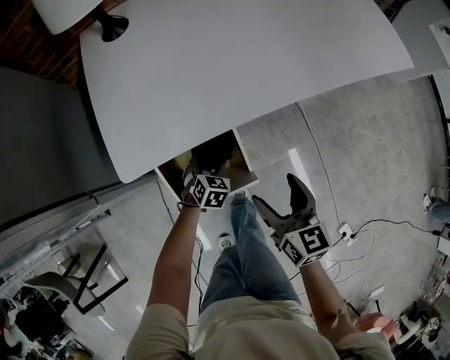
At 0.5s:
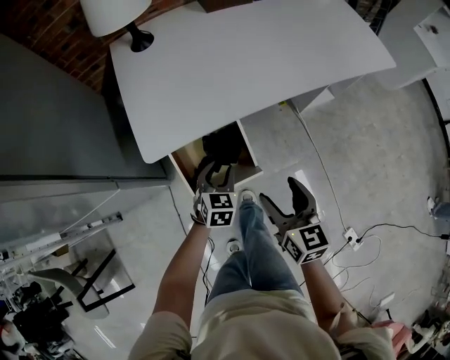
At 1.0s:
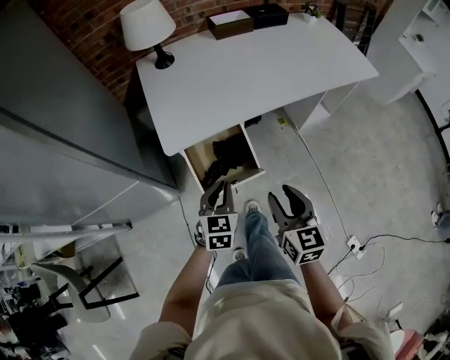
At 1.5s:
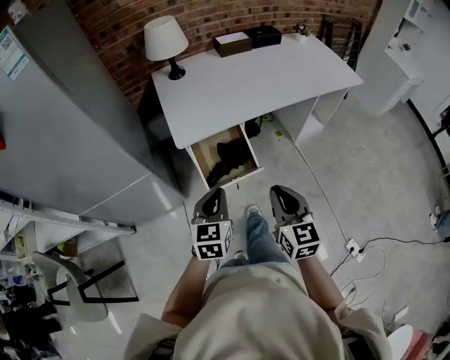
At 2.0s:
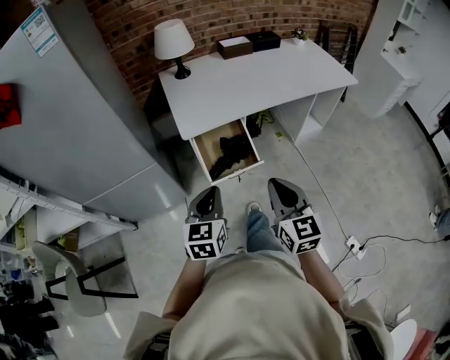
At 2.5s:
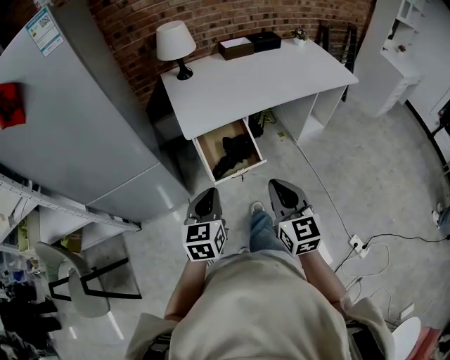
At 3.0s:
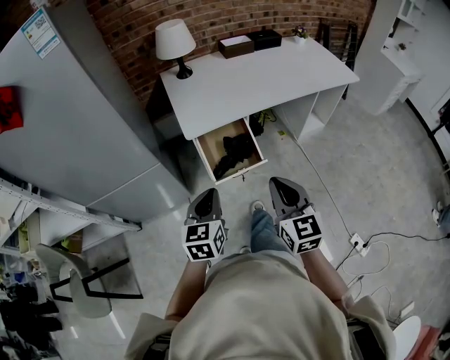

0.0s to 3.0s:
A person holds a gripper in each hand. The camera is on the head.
0.0s to 1.5s: The right gripper is displaced backward and upward by roughly 30 cm, changes its angle by some 20 degrees, and closes its fingers; the left gripper heads upward and backward, covering approximately 50 cm, tilts its fingers approximately 30 degrees upward, and closes up.
1.5s to 3.0s: The left gripper is displaced backward and to the left by about 10 cm. Meanwhile the right gripper moves backward, some 5 cm.

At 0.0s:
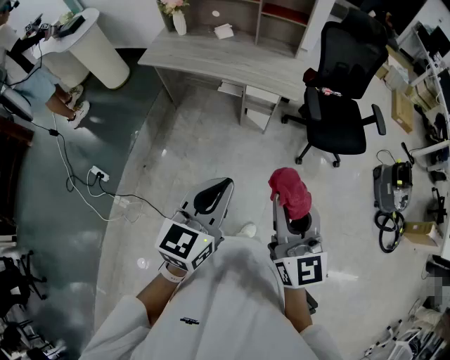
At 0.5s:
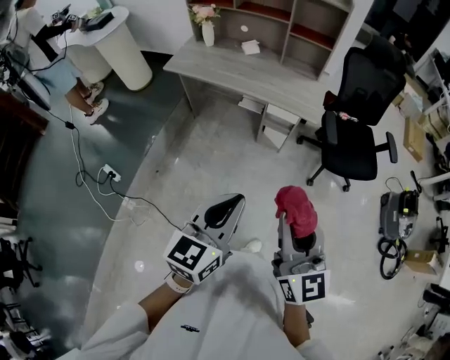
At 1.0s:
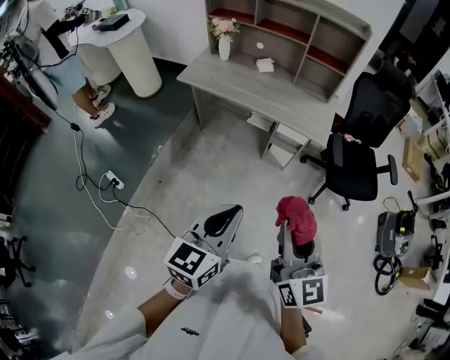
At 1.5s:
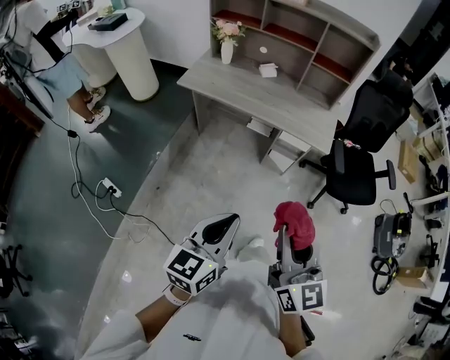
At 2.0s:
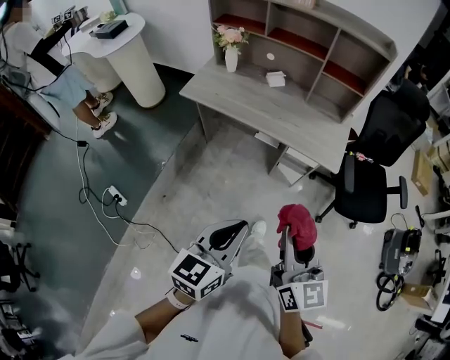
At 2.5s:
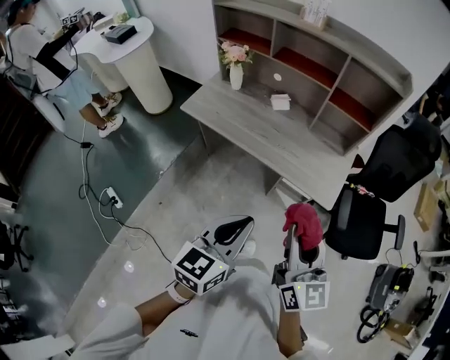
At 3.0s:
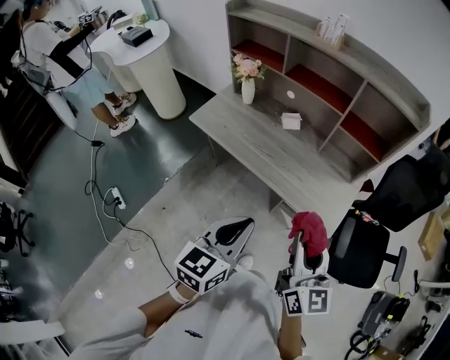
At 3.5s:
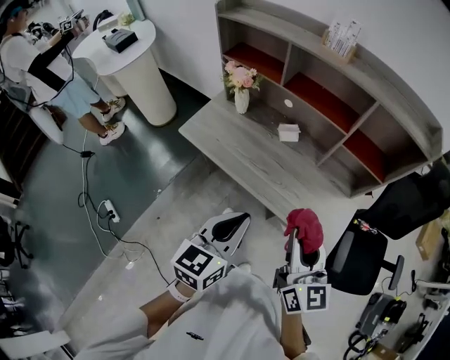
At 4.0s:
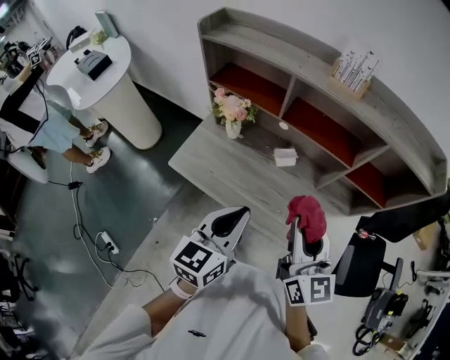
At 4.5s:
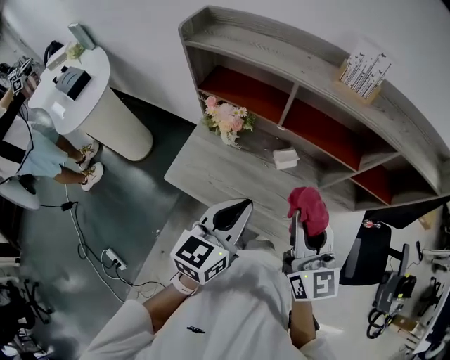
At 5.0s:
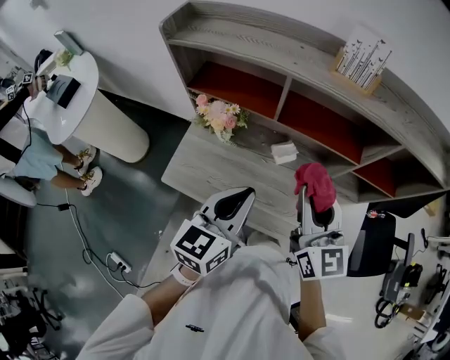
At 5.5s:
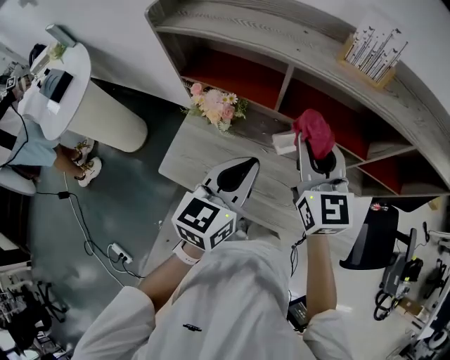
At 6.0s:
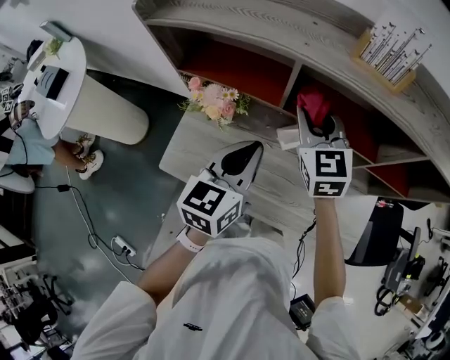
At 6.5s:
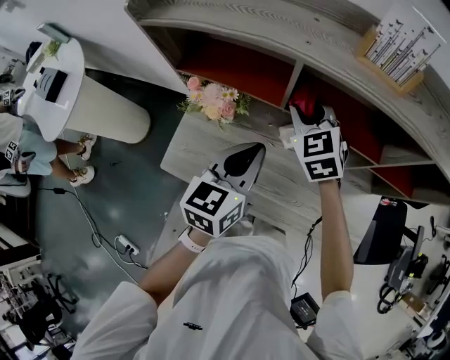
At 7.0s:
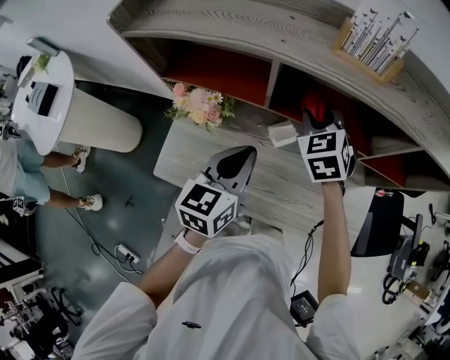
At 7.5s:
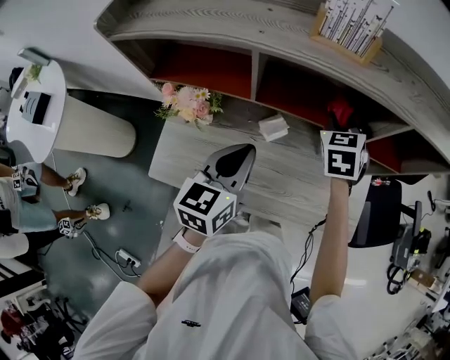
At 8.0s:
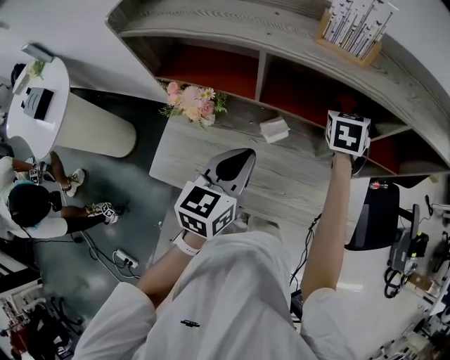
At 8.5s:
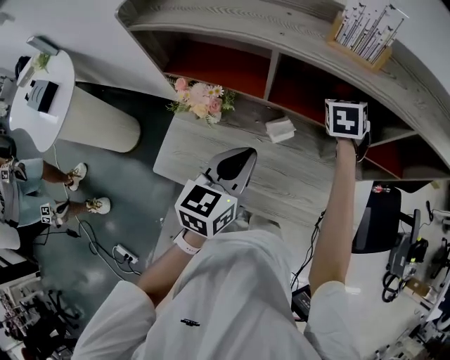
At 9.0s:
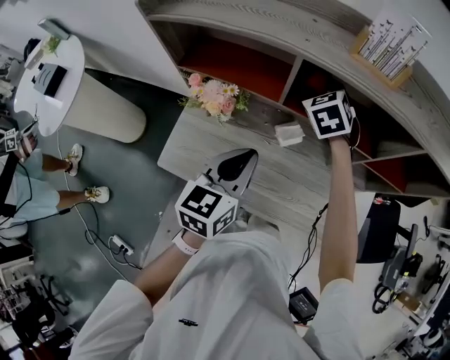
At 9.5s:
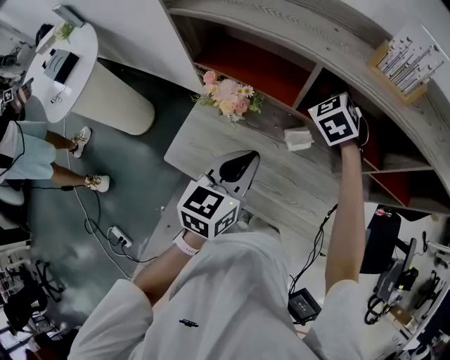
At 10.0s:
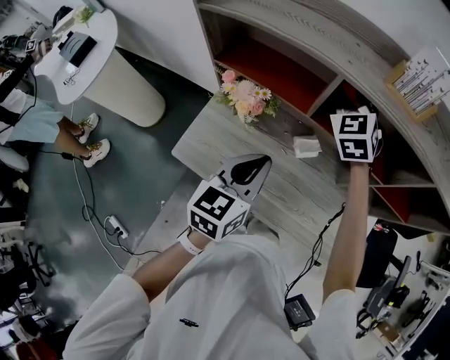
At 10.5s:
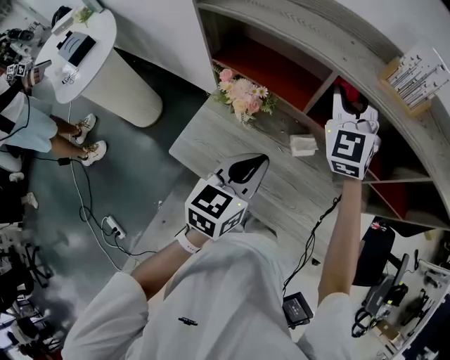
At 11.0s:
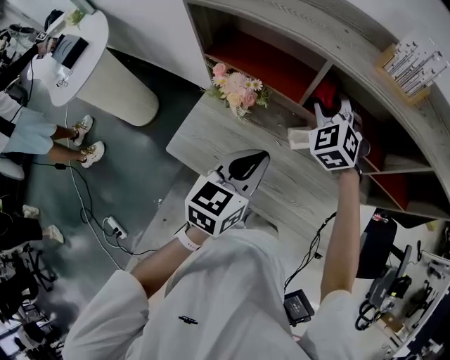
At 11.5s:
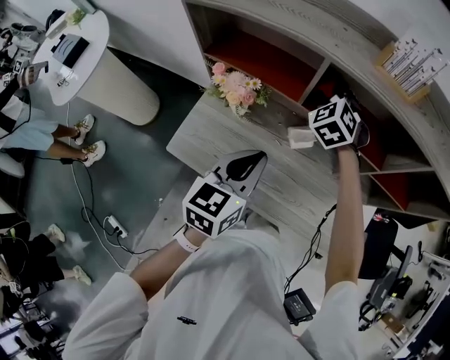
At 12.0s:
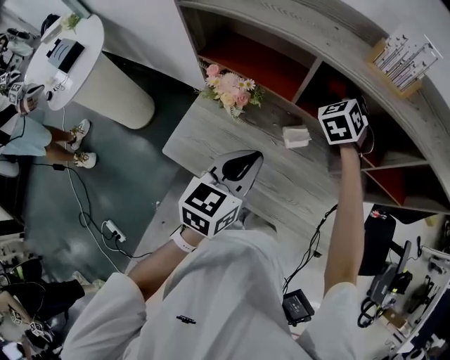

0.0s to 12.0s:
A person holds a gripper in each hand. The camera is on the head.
0.0s to 2.0s: The right gripper shifts approximately 20 cm forward and to the left; the left gripper shifts roughly 20 cm to the left and forward.
2.0s to 4.0s: The pair of grippers is taken forward, approximately 50 cm.
4.0s to 6.0s: The grippers both shift forward by about 25 cm. The right gripper changes its angle by roughly 30 degrees.
6.0s to 8.0s: The right gripper heads to the right, covering some 20 cm, and rotates some 40 degrees.
8.0s to 10.0s: The left gripper is displaced to the left by approximately 5 cm, while the right gripper moves to the left, about 20 cm, and swivels about 50 degrees.
10.0s to 12.0s: The right gripper travels downward and to the right by roughly 10 cm, and rotates roughly 20 degrees.

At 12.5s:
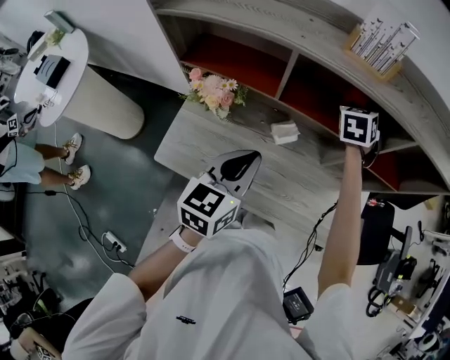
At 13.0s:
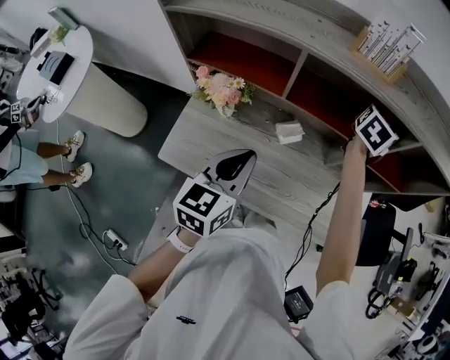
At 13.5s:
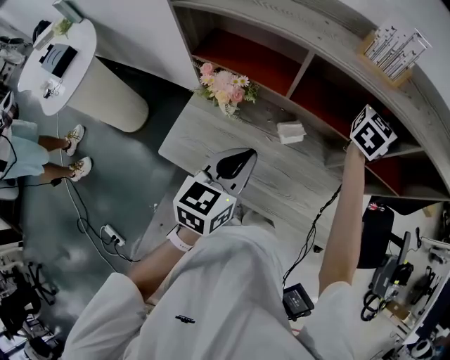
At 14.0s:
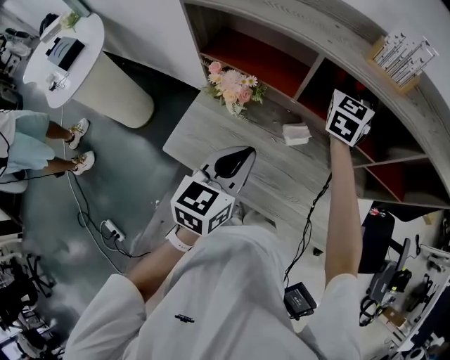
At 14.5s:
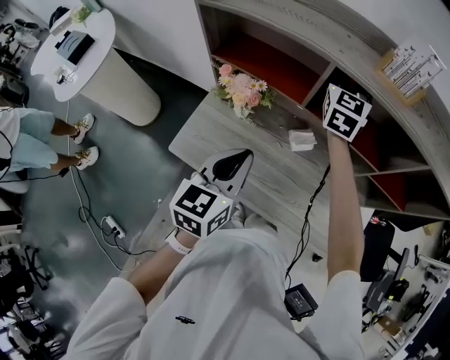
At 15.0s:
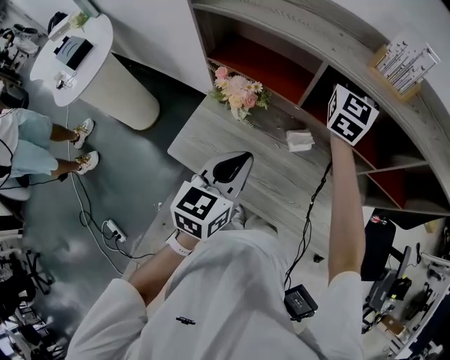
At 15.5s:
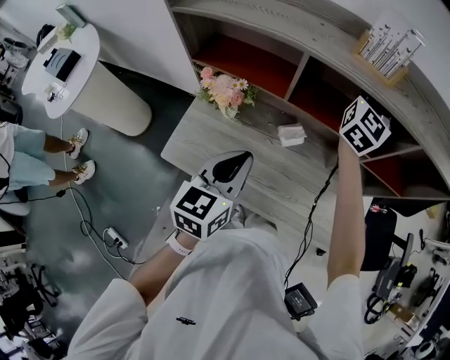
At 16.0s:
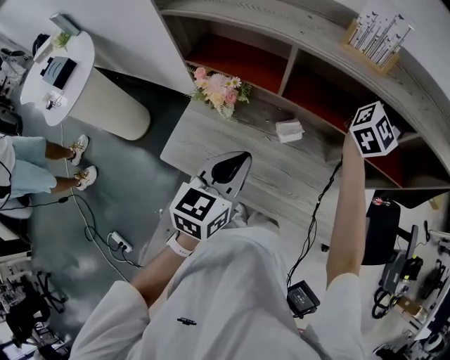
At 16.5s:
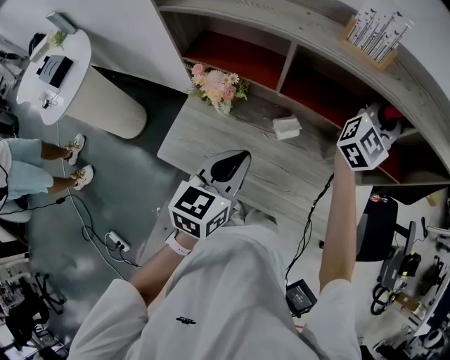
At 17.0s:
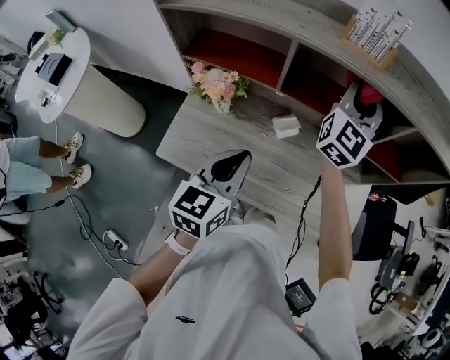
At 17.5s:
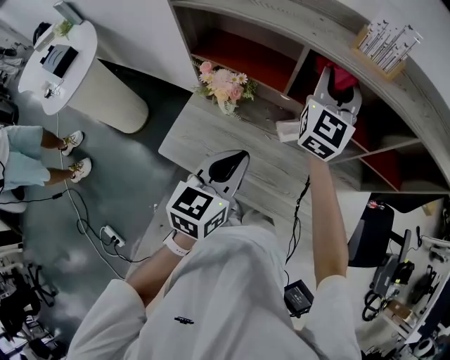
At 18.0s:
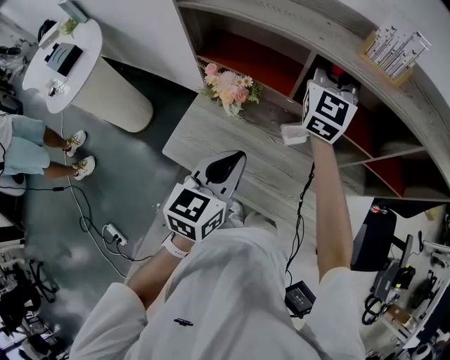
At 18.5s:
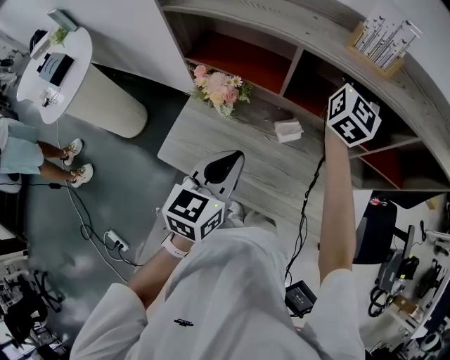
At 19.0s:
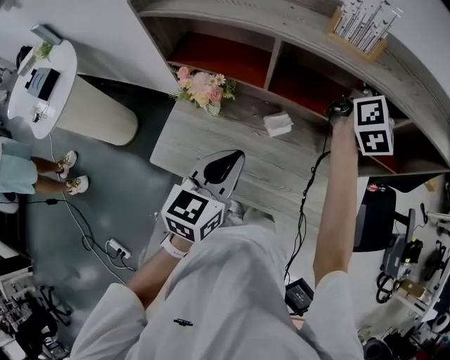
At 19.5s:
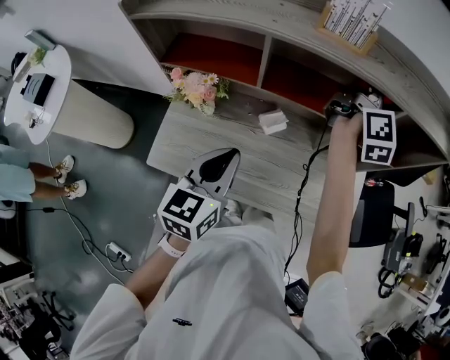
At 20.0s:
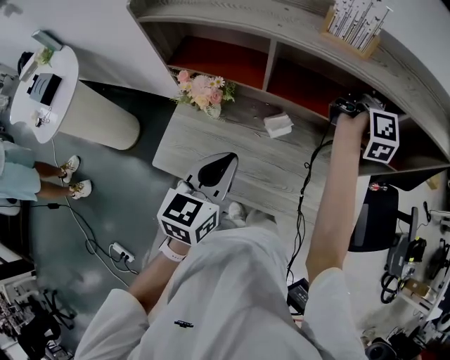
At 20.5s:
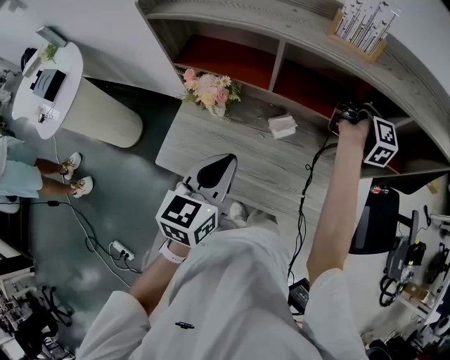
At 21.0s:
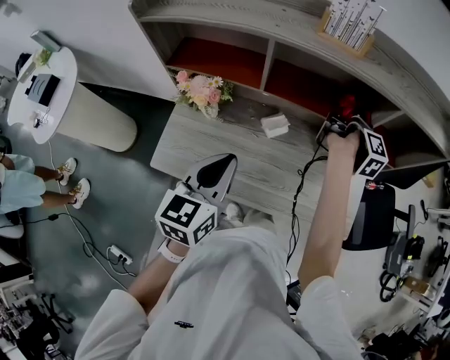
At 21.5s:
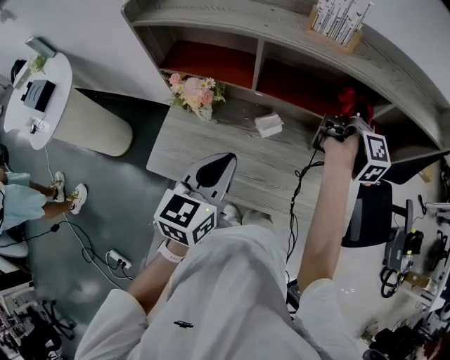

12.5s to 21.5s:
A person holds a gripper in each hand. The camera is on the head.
12.5s to 14.5s: The left gripper goes roughly 5 cm to the left, while the right gripper goes approximately 20 cm to the left and upward, and tips its fingers upward by roughly 30 degrees.
14.5s to 17.0s: The left gripper goes roughly 5 cm to the right. Meanwhile the right gripper travels to the right and backward by some 15 cm, and swivels roughly 30 degrees.
17.0s to 19.5s: The right gripper travels to the right by roughly 10 cm, and rolls clockwise, seen from behind, by roughly 50 degrees.
19.5s to 21.5s: The right gripper moves downward and backward, some 10 cm, and rotates approximately 40 degrees.

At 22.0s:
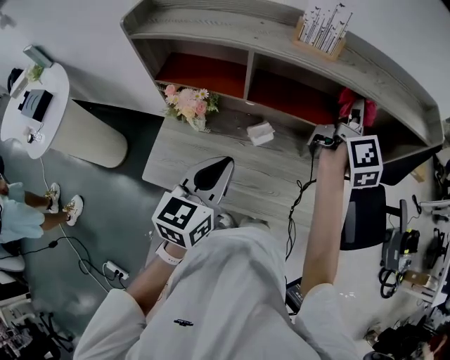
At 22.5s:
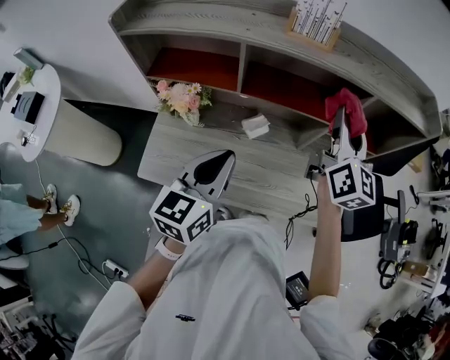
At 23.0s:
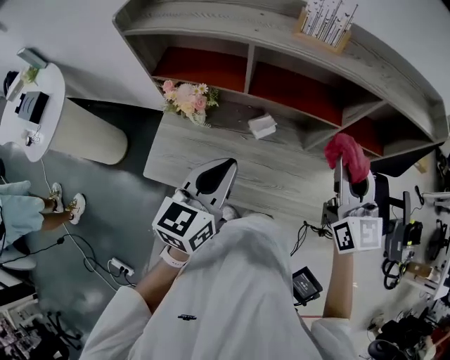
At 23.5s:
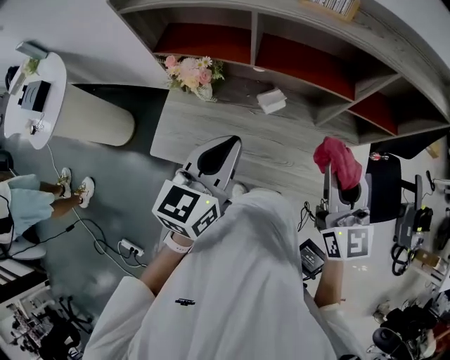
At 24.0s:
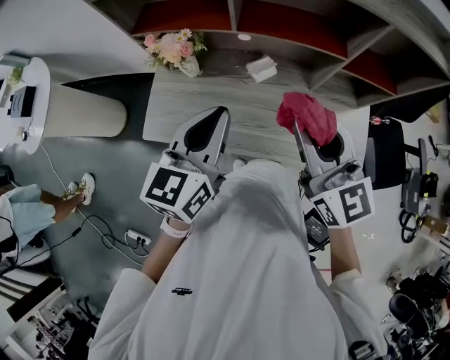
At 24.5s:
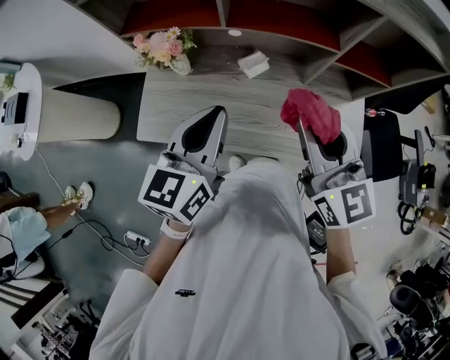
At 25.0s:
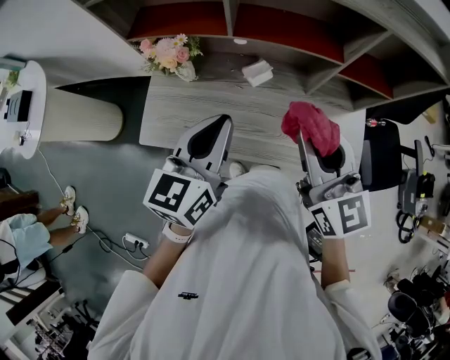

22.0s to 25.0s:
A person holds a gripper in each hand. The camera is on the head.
22.0s to 23.5s: The right gripper heads backward, covering approximately 20 cm, and rotates roughly 60 degrees.
